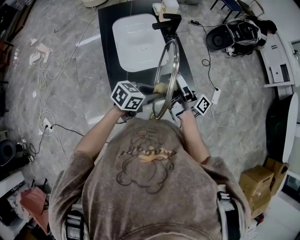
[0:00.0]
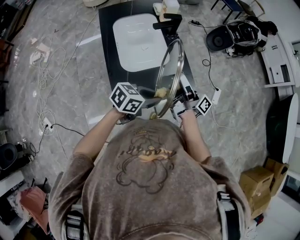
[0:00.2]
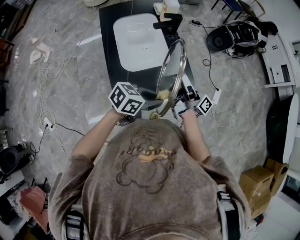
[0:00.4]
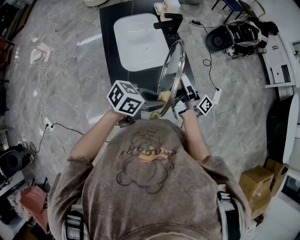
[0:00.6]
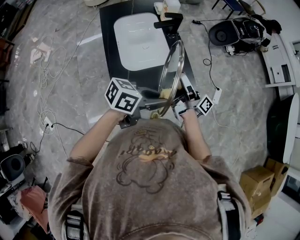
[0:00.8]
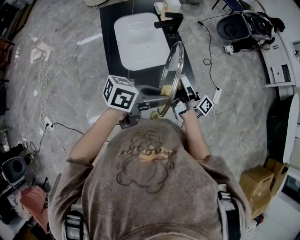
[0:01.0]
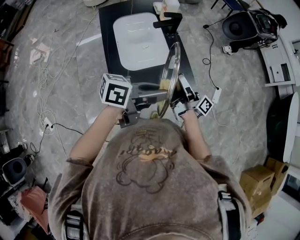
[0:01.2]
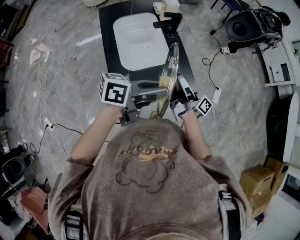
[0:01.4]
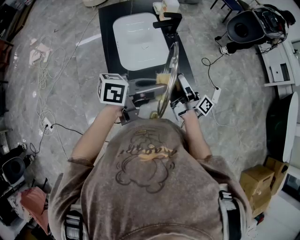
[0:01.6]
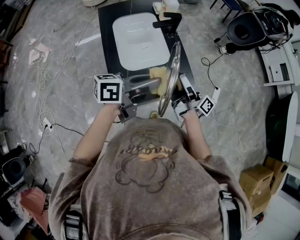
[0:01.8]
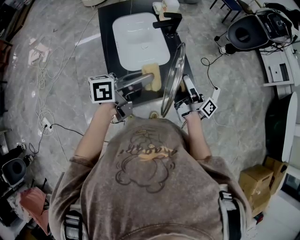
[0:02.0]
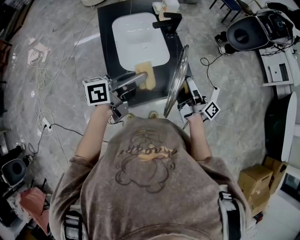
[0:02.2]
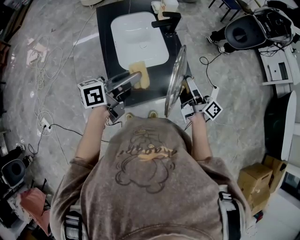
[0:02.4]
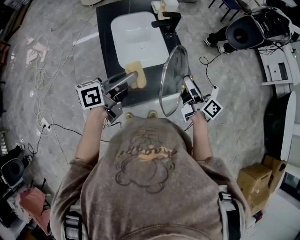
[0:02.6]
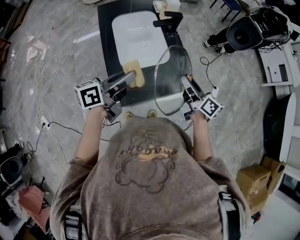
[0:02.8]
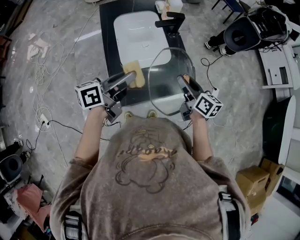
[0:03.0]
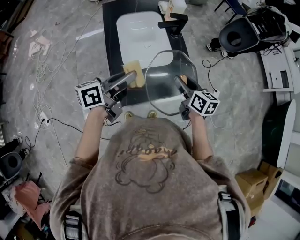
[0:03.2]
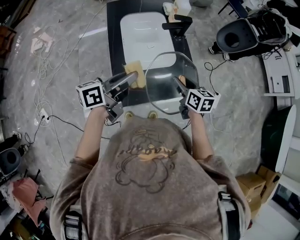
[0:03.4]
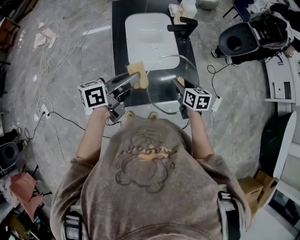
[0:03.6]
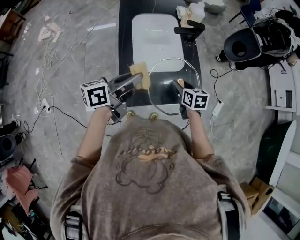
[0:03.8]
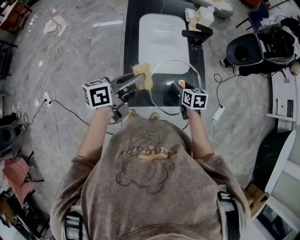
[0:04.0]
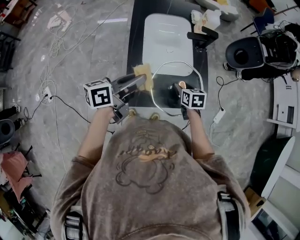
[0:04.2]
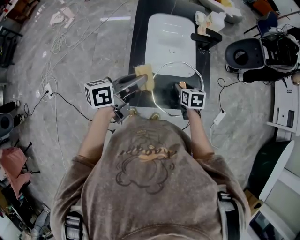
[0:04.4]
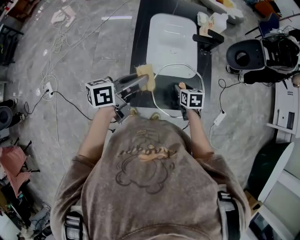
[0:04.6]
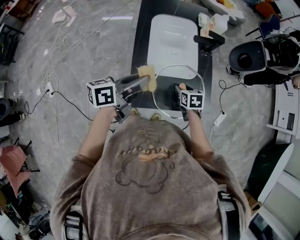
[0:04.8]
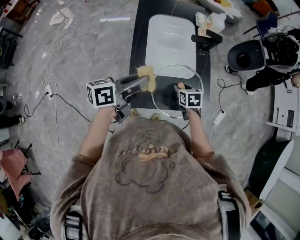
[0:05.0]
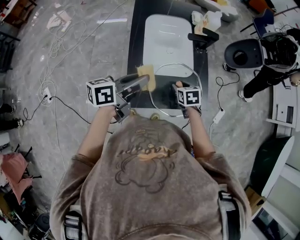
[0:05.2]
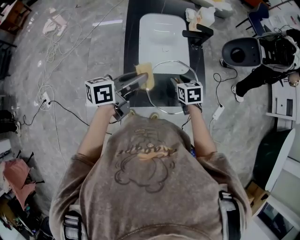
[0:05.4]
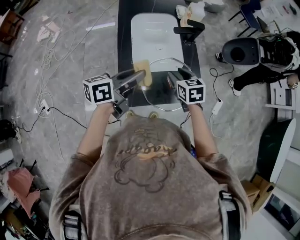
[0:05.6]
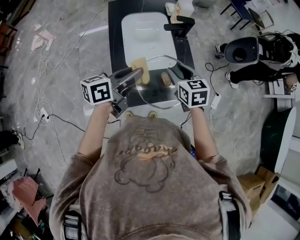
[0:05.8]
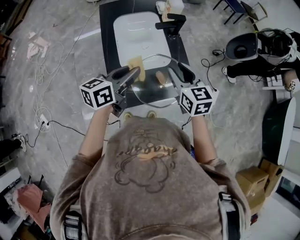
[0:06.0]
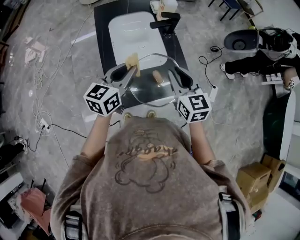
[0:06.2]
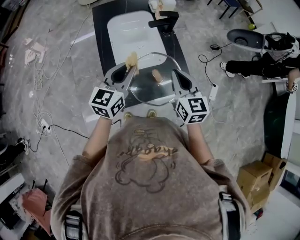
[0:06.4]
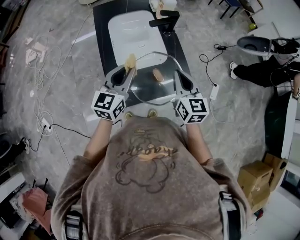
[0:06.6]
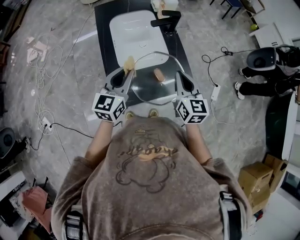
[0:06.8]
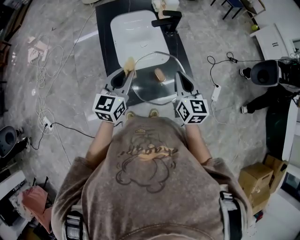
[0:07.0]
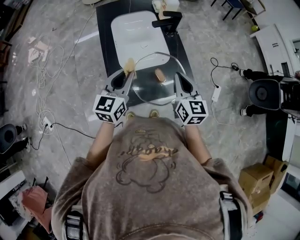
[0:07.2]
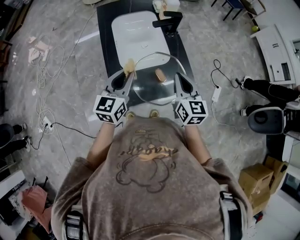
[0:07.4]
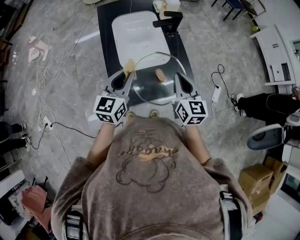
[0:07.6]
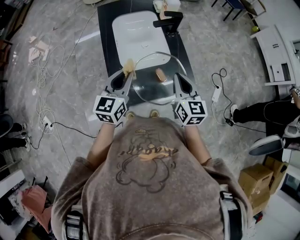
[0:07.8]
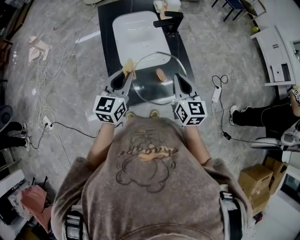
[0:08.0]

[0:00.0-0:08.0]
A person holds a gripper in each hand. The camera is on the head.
0:00.0 to 0:01.6: The left gripper travels upward by some 15 cm, and rotates approximately 30 degrees.
0:01.6 to 0:03.2: The left gripper moves to the left, approximately 15 cm, and rotates roughly 30 degrees; the right gripper tilts its fingers about 40 degrees downward.
0:03.2 to 0:04.8: The left gripper is displaced to the left by about 5 cm; the right gripper goes approximately 15 cm downward and to the left, and tilts its fingers approximately 30 degrees downward.
0:04.8 to 0:06.4: The left gripper shifts some 5 cm to the right, and rotates around the line of its fingers by some 40 degrees, clockwise from behind; the right gripper moves upward, some 20 cm, tilts its fingers some 40 degrees upward, and closes.
0:06.4 to 0:08.0: The grippers stay close to where they were, moving slightly.

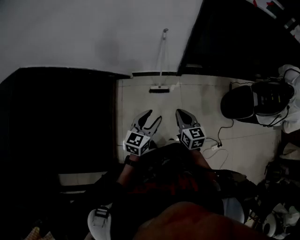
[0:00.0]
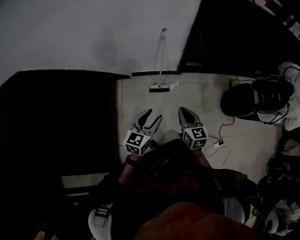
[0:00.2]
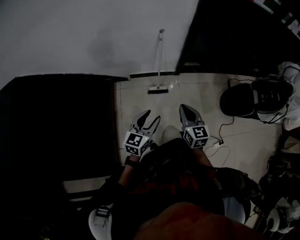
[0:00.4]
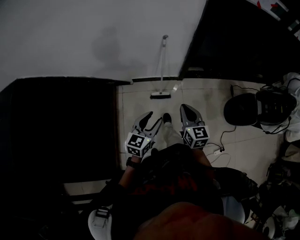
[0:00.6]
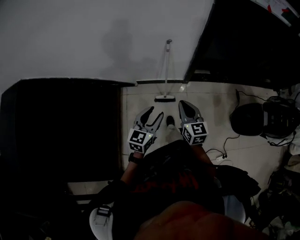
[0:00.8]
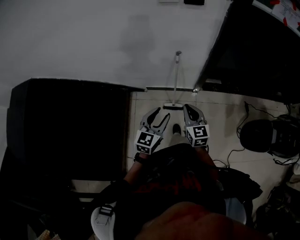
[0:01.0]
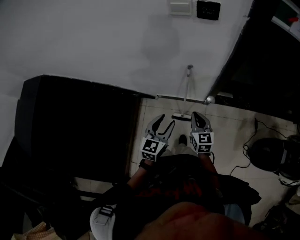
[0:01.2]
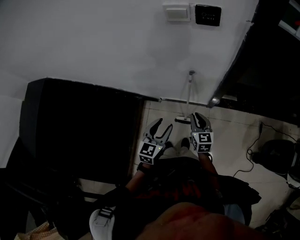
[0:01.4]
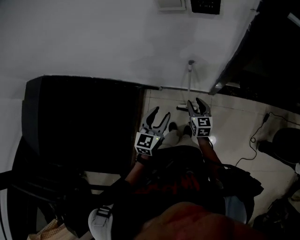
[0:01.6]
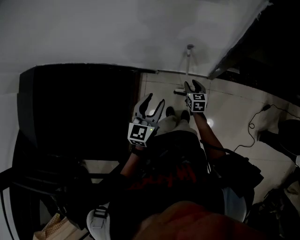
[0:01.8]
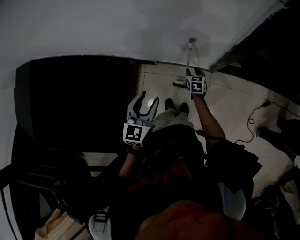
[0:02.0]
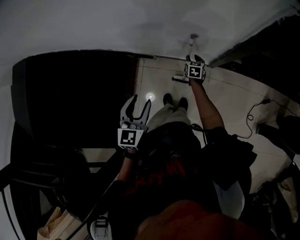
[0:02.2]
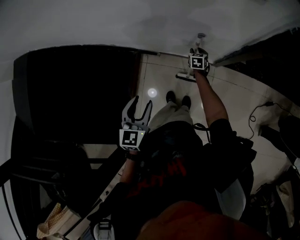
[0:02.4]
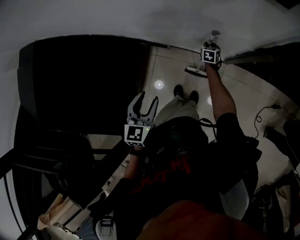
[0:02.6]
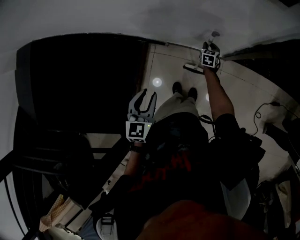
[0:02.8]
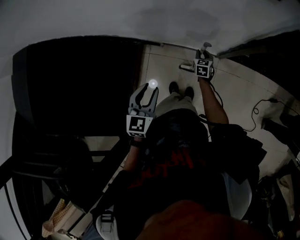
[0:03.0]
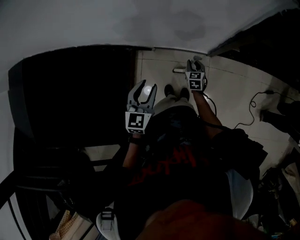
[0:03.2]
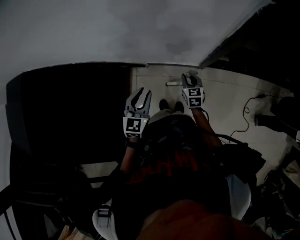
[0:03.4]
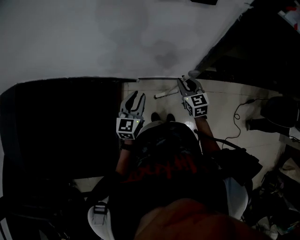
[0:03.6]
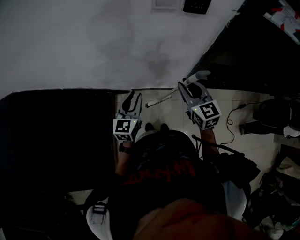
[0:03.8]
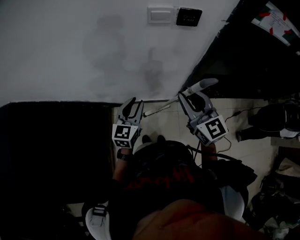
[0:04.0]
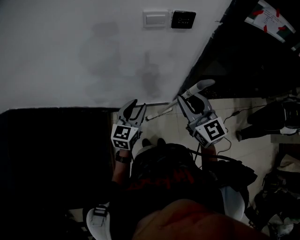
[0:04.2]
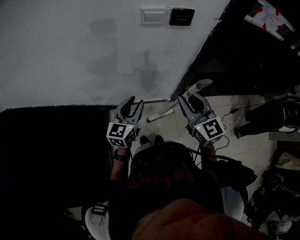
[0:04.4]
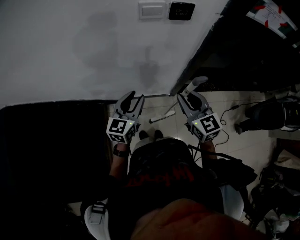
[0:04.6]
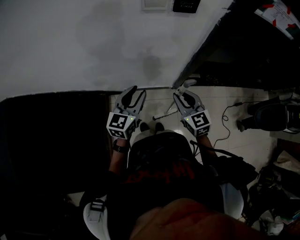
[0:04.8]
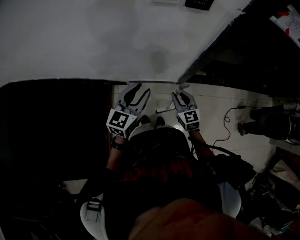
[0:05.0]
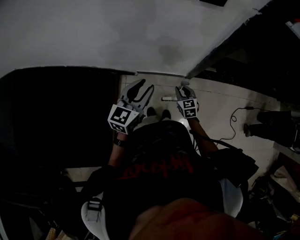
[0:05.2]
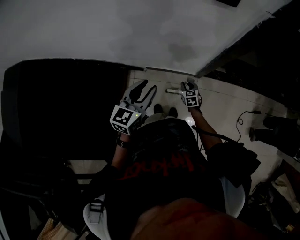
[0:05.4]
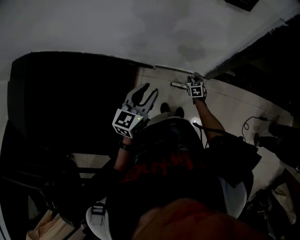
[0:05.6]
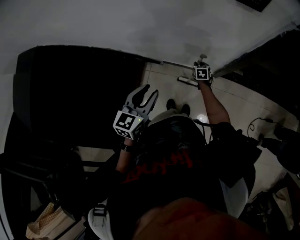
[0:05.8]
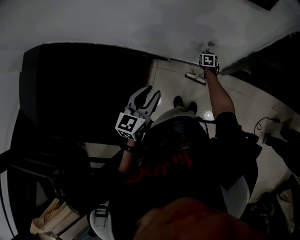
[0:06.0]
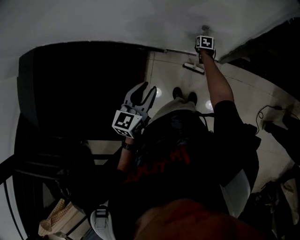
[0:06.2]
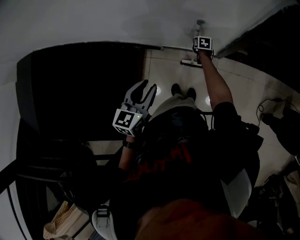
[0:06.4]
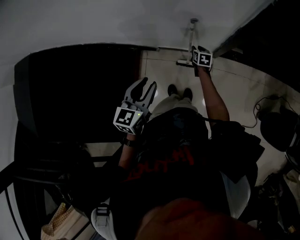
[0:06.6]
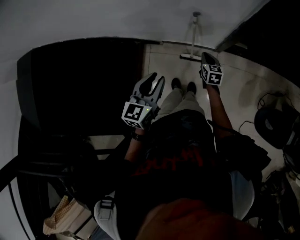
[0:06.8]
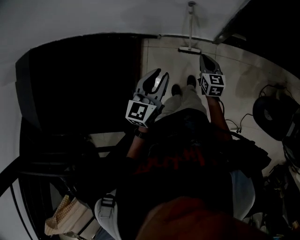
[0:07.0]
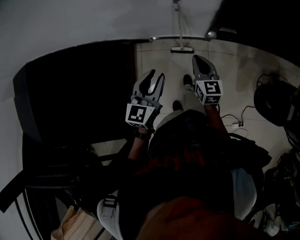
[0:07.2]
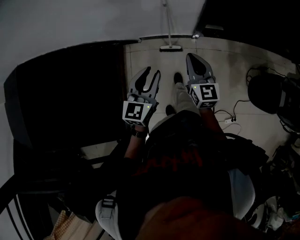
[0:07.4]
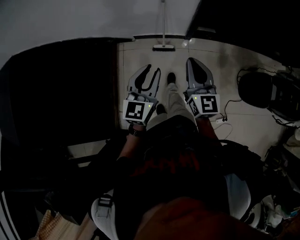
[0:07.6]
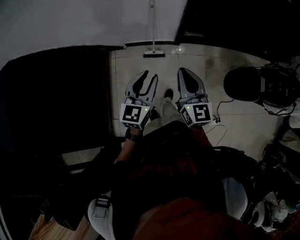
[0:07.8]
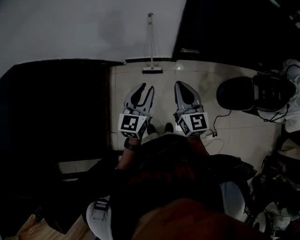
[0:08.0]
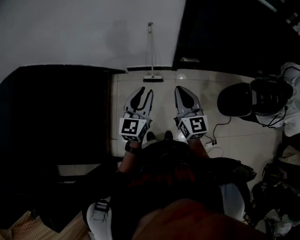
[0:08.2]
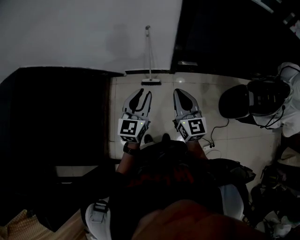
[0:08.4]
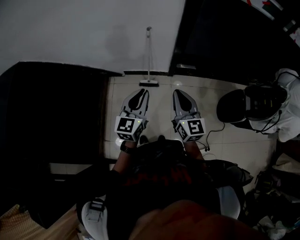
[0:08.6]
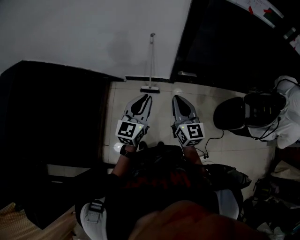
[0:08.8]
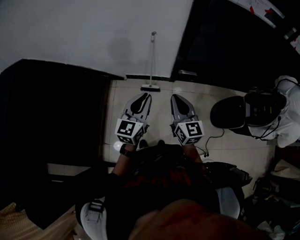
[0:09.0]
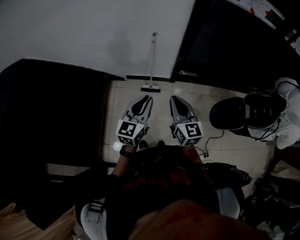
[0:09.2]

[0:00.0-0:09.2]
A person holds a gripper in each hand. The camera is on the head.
0:00.0 to 0:01.6: Both grippers move forward, some 40 cm. The right gripper opens up. The left gripper rotates roughly 20 degrees.
0:01.6 to 0:03.0: The right gripper travels downward and forward by about 25 cm, and swivels about 20 degrees. Meanwhile the left gripper travels to the left by about 10 cm.
0:03.0 to 0:04.6: The left gripper goes roughly 15 cm upward, forward and to the right, and changes its angle by some 30 degrees; the right gripper travels upward by roughly 50 cm, and changes its angle by approximately 30 degrees.
0:04.6 to 0:06.2: The left gripper is displaced backward, to the left and downward by some 10 cm, and changes its angle by about 20 degrees. Meanwhile the right gripper shifts roughly 50 cm downward and forward, and angles its fingers downward, by about 40 degrees.
0:06.2 to 0:07.6: The right gripper heads backward and upward, covering approximately 60 cm, points its fingers about 50 degrees further upward, and closes its fingers; the left gripper heads backward and to the right, covering some 25 cm.
0:07.6 to 0:09.2: The left gripper heads backward and upward, covering some 15 cm, while the right gripper moves backward, about 15 cm.

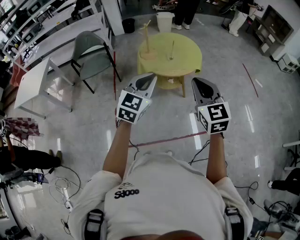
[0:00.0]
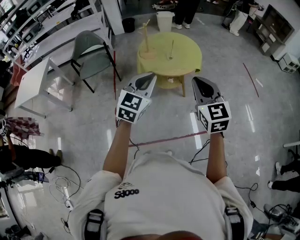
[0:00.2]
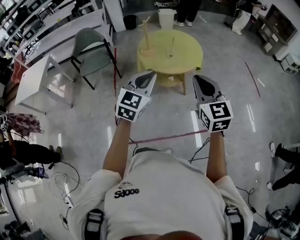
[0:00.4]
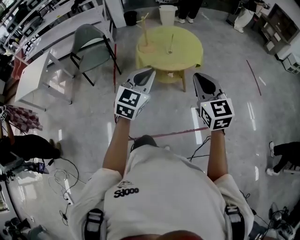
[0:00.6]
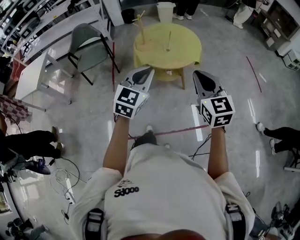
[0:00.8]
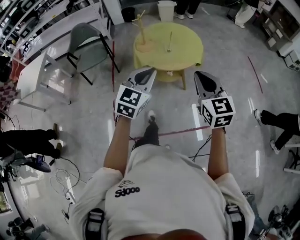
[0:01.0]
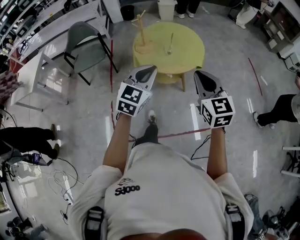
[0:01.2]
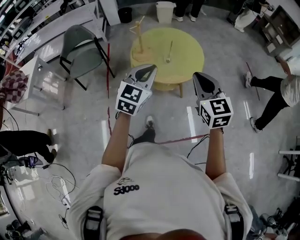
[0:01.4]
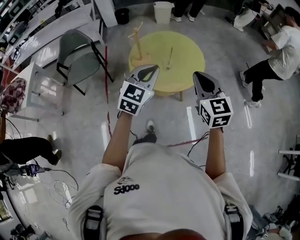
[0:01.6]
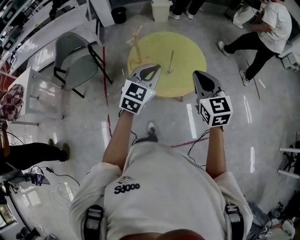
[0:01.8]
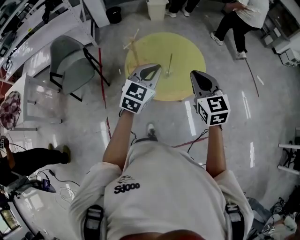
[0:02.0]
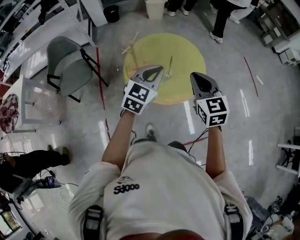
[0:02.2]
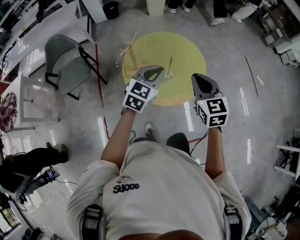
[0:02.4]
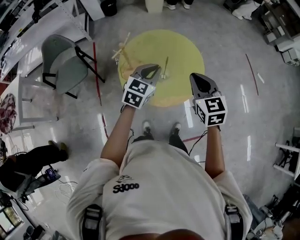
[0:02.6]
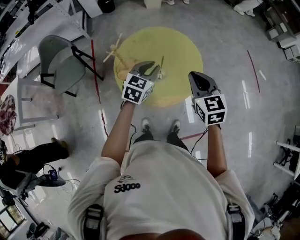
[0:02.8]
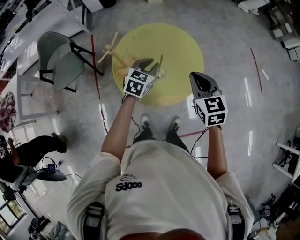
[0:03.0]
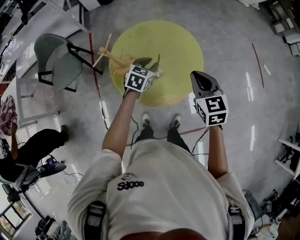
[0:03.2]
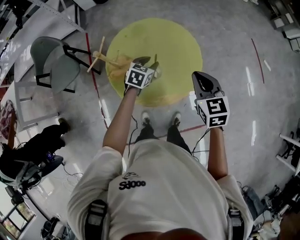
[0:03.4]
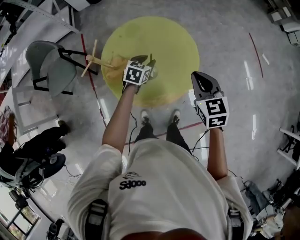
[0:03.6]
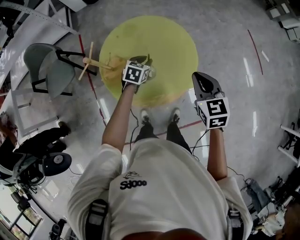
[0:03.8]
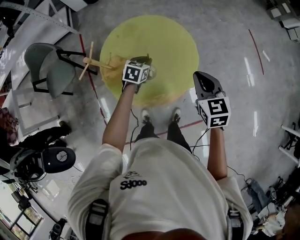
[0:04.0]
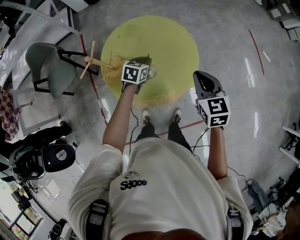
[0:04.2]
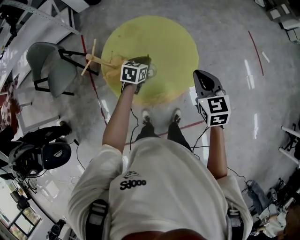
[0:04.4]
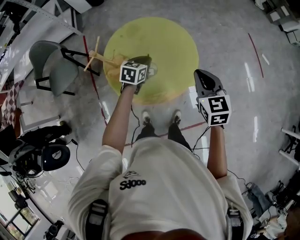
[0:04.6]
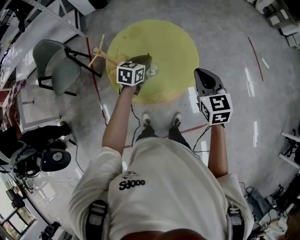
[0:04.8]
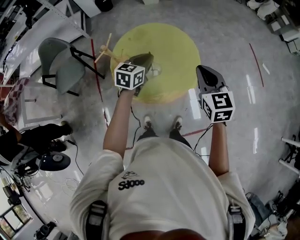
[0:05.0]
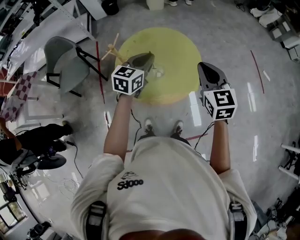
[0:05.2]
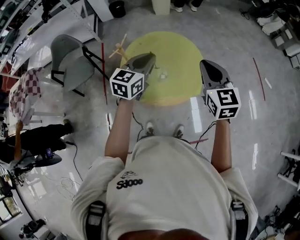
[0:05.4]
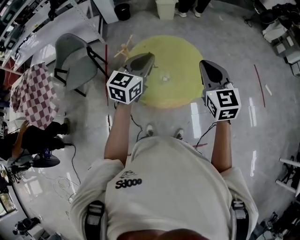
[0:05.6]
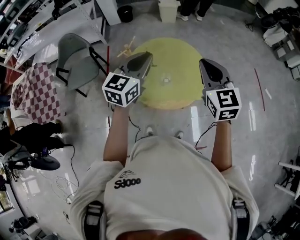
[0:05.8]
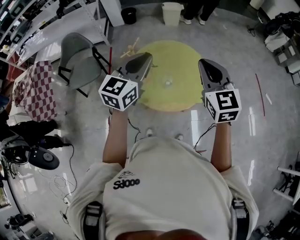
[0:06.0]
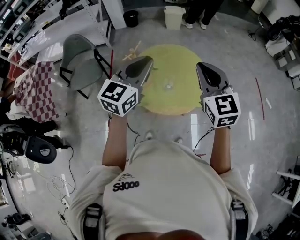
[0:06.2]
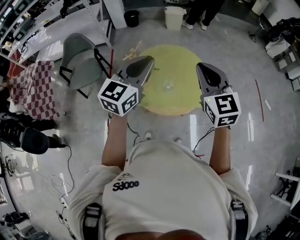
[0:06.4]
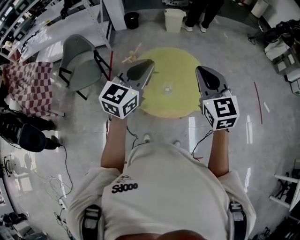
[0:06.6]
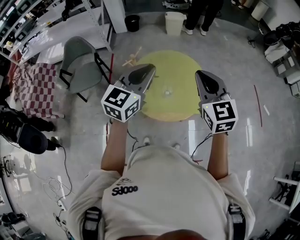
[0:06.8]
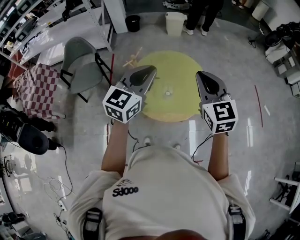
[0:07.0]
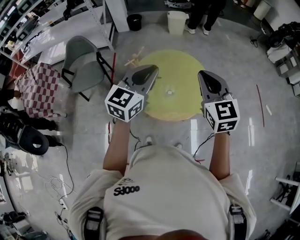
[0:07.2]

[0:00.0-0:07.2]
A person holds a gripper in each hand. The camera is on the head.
0:00.0 to 0:01.4: Both grippers move forward, approximately 20 cm.
0:01.4 to 0:02.8: The left gripper heads forward and downward, covering roughly 35 cm. Meanwhile the right gripper heads forward, covering about 30 cm.
0:02.8 to 0:04.4: The left gripper is displaced downward and forward by some 20 cm, changes its angle by approximately 20 degrees, and opens, then closes again; the right gripper shifts approximately 10 cm to the right, downward and forward.
0:04.4 to 0:05.8: The right gripper moves upward, roughly 20 cm, and rotates approximately 20 degrees, while the left gripper heads upward and backward, covering approximately 35 cm, and points its fingers some 40 degrees further upward.
0:05.8 to 0:07.2: The grippers make only small movements.
